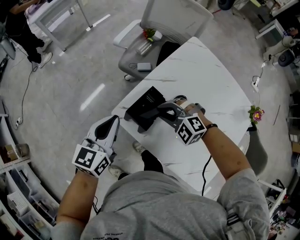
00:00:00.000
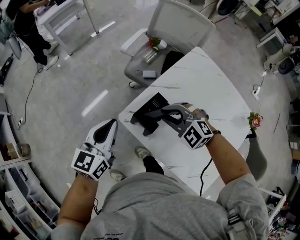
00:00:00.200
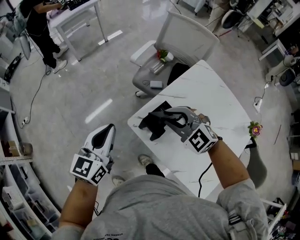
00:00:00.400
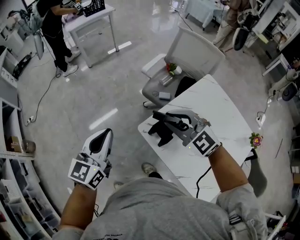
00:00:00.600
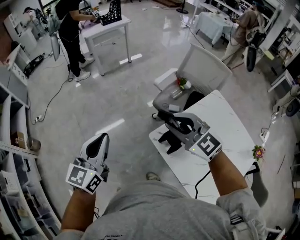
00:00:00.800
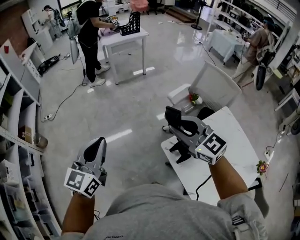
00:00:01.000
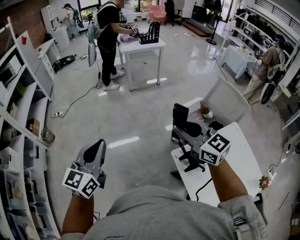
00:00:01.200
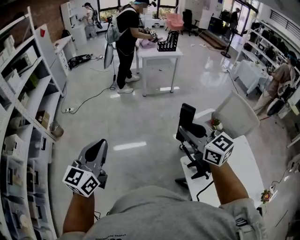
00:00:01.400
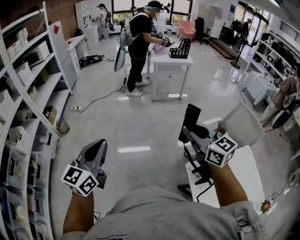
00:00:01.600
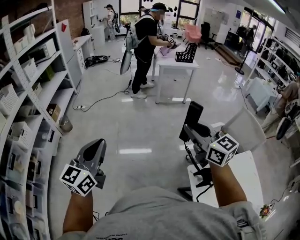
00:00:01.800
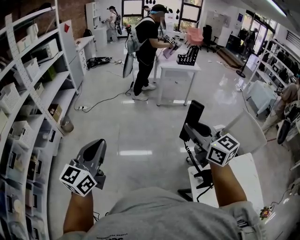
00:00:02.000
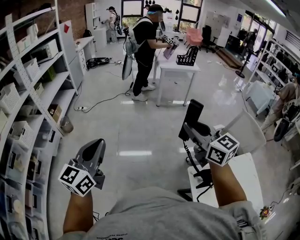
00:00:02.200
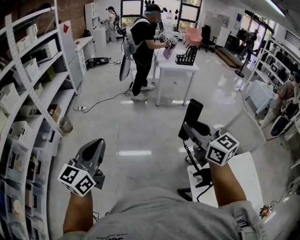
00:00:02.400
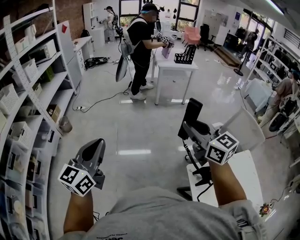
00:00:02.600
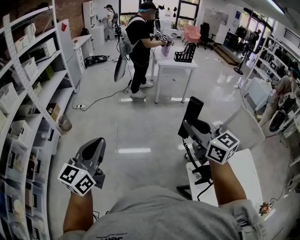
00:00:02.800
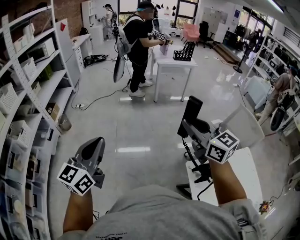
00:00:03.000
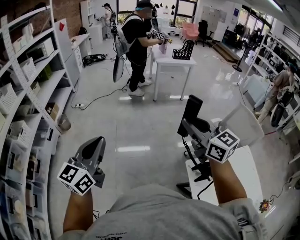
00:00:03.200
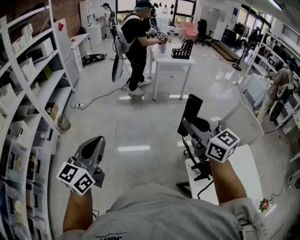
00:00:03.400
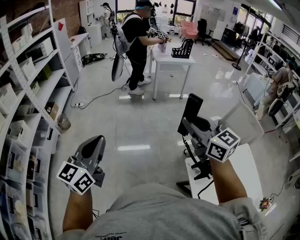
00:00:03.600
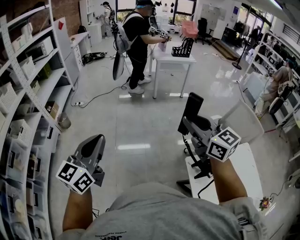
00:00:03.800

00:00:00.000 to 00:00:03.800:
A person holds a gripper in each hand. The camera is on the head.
00:00:00.000 to 00:00:01.200: The left gripper heads to the left and upward, covering about 40 cm, and rotates some 40 degrees. The right gripper travels upward and to the left by roughly 40 cm, and angles its fingers upward, by approximately 40 degrees.
00:00:01.200 to 00:00:02.600: The left gripper travels to the left by some 15 cm; the right gripper travels to the left and upward by roughly 10 cm.
00:00:02.600 to 00:00:03.800: The grippers make only small movements.

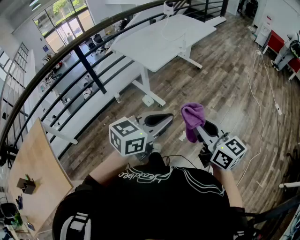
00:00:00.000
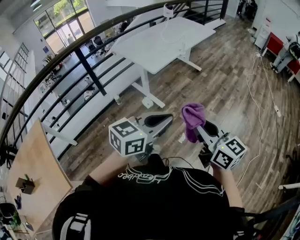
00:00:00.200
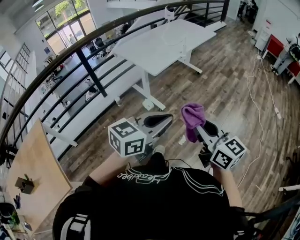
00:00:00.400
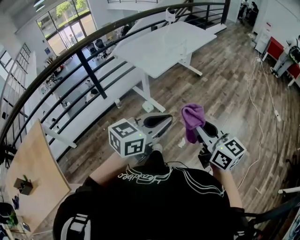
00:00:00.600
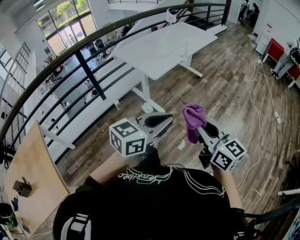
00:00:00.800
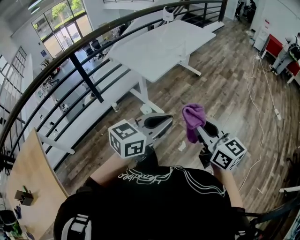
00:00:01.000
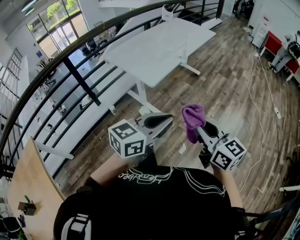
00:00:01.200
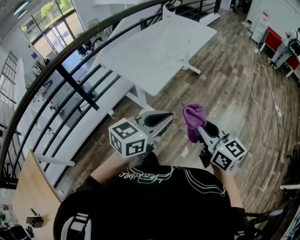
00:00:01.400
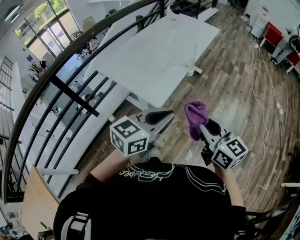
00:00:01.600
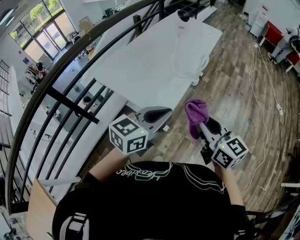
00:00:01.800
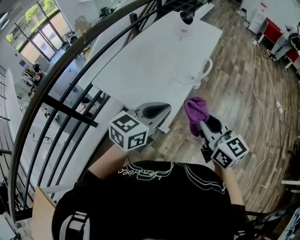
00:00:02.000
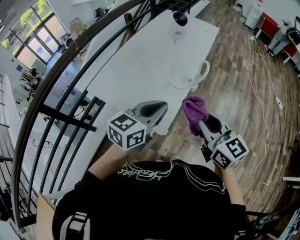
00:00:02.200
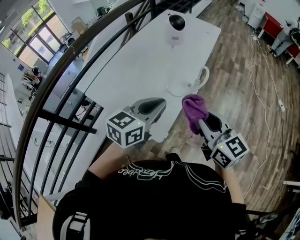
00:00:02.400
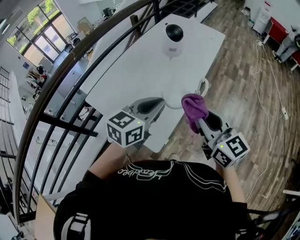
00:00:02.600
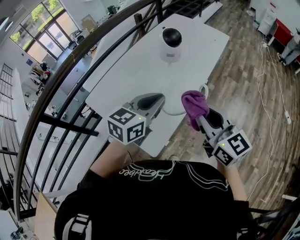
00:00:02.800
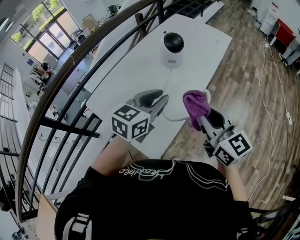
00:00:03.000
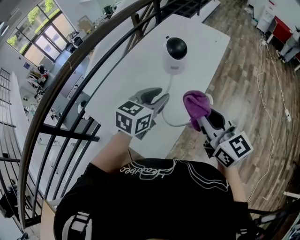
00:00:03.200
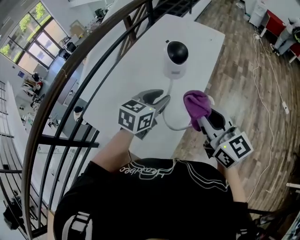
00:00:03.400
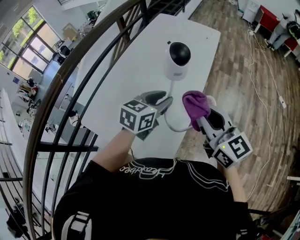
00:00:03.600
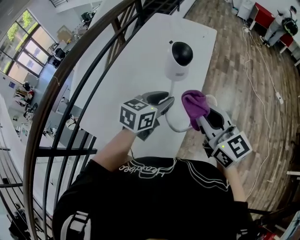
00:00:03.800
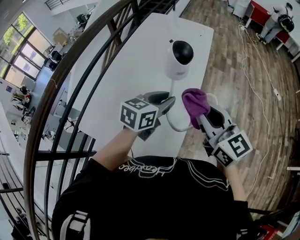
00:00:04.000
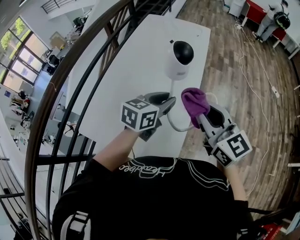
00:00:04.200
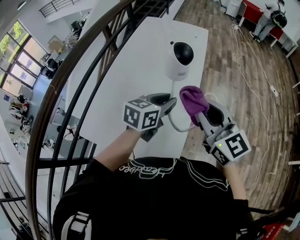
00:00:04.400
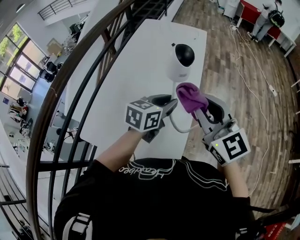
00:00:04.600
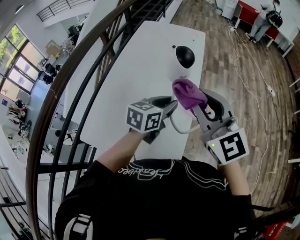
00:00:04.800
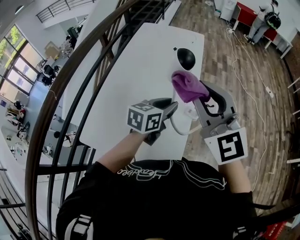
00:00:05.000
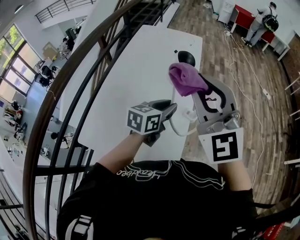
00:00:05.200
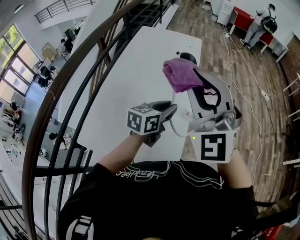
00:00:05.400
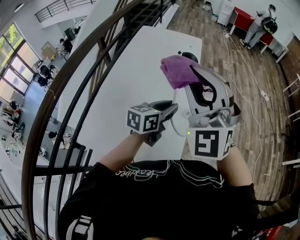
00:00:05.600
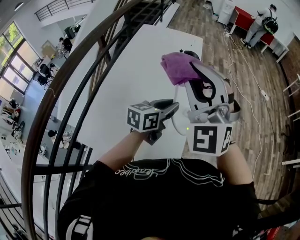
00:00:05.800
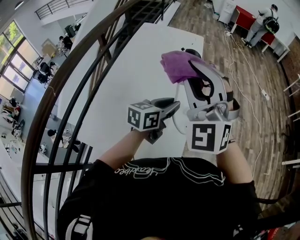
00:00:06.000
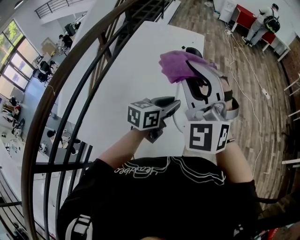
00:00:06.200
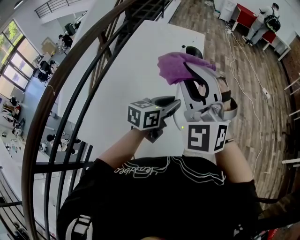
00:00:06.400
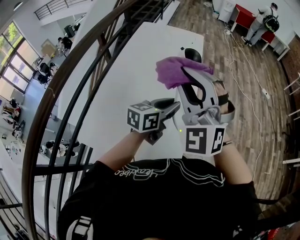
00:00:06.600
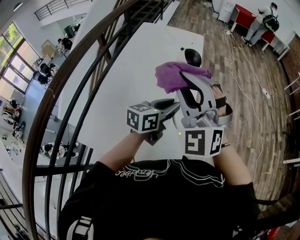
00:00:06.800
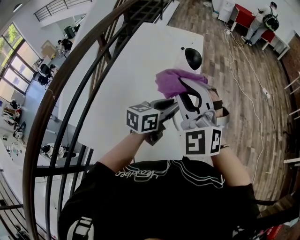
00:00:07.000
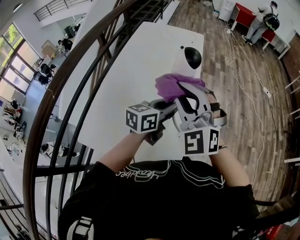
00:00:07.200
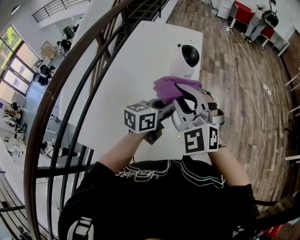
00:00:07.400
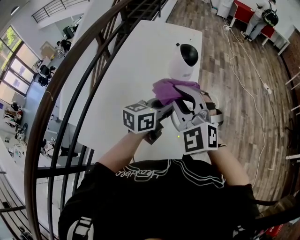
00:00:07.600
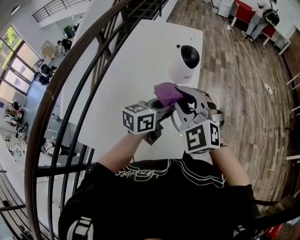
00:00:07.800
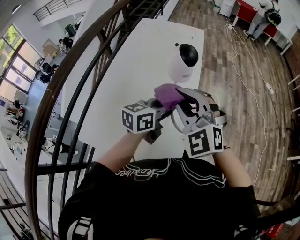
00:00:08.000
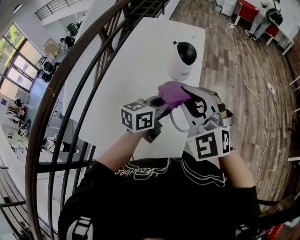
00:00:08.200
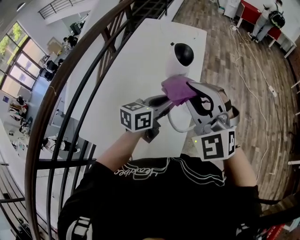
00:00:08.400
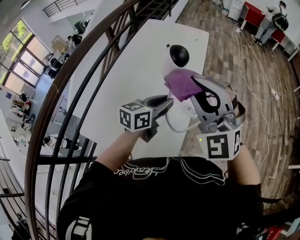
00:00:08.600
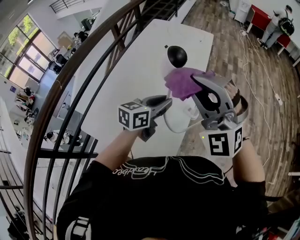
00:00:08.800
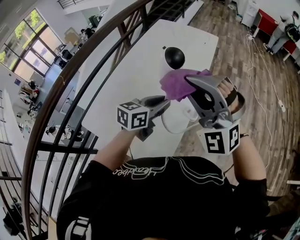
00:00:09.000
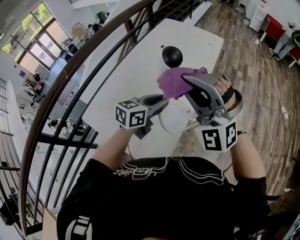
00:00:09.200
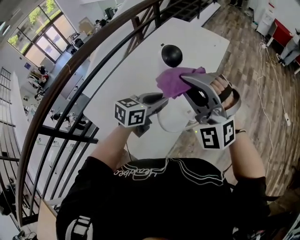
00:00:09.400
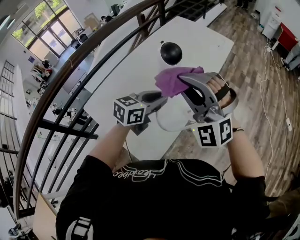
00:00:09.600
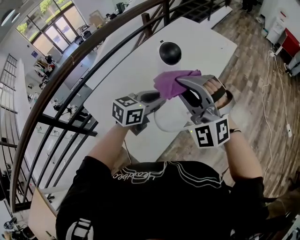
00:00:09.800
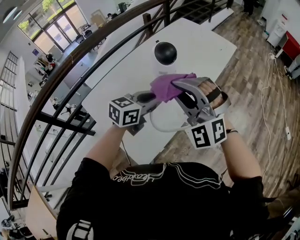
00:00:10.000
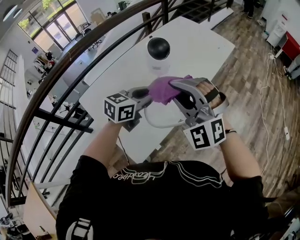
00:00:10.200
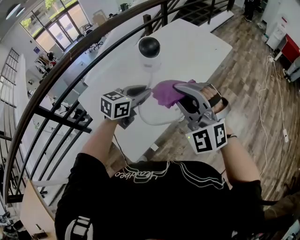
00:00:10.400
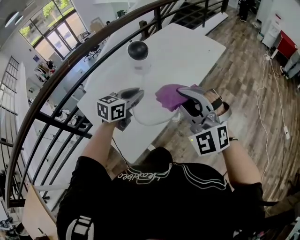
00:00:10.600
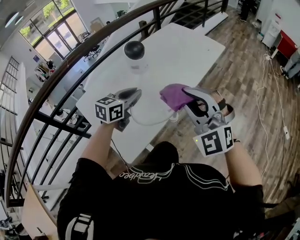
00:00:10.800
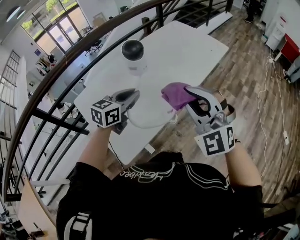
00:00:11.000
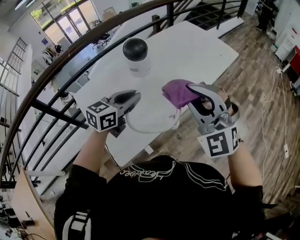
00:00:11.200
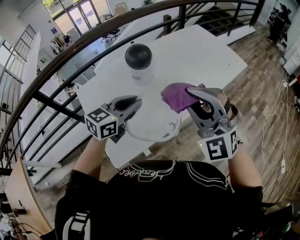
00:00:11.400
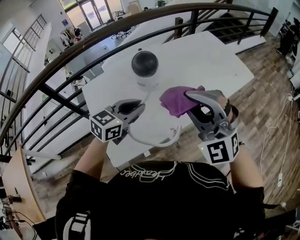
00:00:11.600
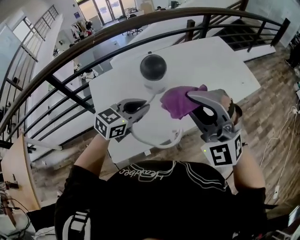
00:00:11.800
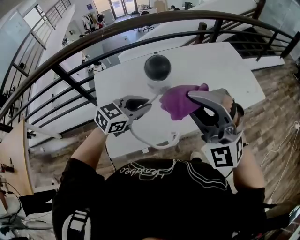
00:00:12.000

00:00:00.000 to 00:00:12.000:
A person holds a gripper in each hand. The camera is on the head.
00:00:00.000 to 00:00:01.600: Both grippers move forward, about 35 cm.
00:00:01.600 to 00:00:03.000: The grippers both shift forward by approximately 40 cm.
00:00:03.000 to 00:00:04.400: The left gripper moves forward, some 5 cm, and rotates approximately 20 degrees. The right gripper is displaced to the left by roughly 5 cm, and swivels some 20 degrees.
00:00:04.400 to 00:00:06.000: The right gripper moves upward and to the left, roughly 15 cm, and rolls counterclockwise, seen from behind, by some 60 degrees.
00:00:06.000 to 00:00:07.600: The right gripper moves downward, about 10 cm, and rotates about 20 degrees.
00:00:07.600 to 00:00:09.000: The right gripper goes about 10 cm upward and to the right, and turns by some 30 degrees.
00:00:09.000 to 00:00:10.400: The right gripper heads to the right and downward, covering approximately 10 cm.
00:00:10.400 to 00:00:12.000: The right gripper moves some 10 cm, and swivels about 40 degrees.

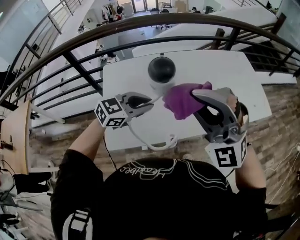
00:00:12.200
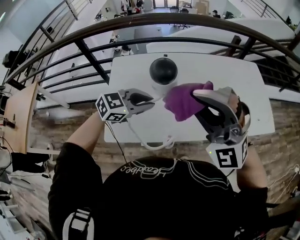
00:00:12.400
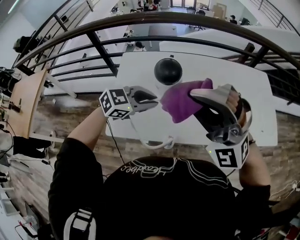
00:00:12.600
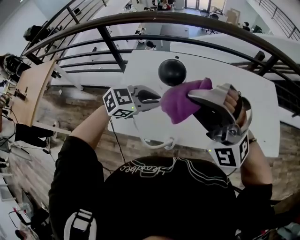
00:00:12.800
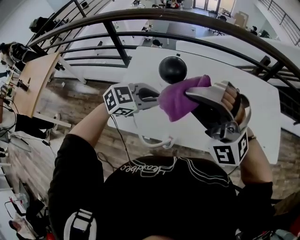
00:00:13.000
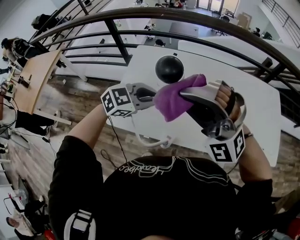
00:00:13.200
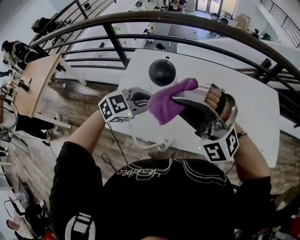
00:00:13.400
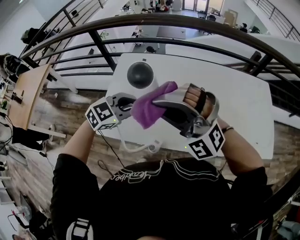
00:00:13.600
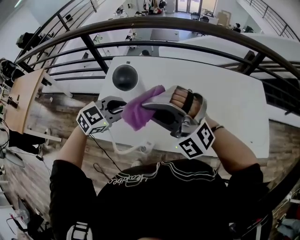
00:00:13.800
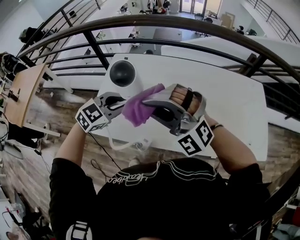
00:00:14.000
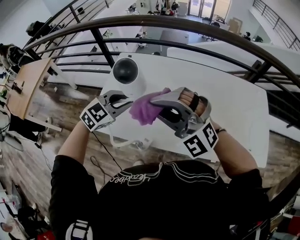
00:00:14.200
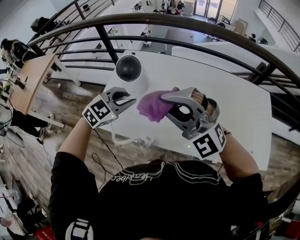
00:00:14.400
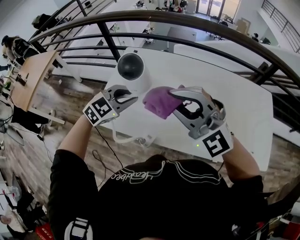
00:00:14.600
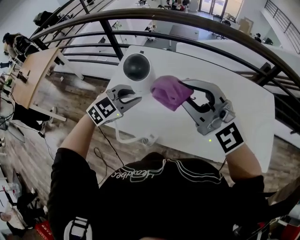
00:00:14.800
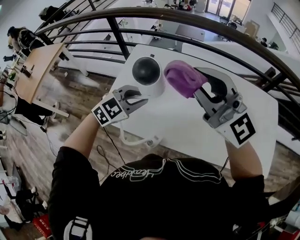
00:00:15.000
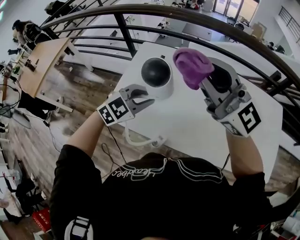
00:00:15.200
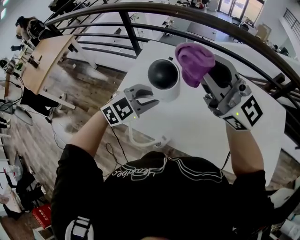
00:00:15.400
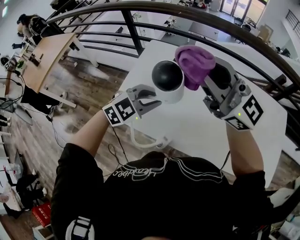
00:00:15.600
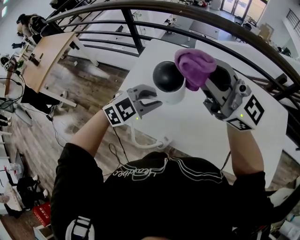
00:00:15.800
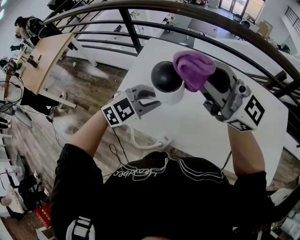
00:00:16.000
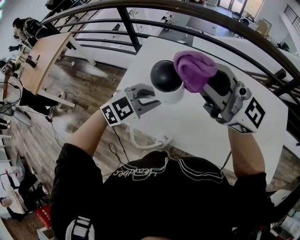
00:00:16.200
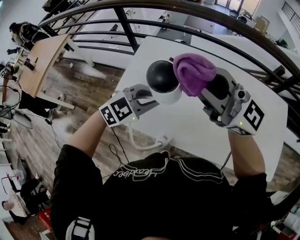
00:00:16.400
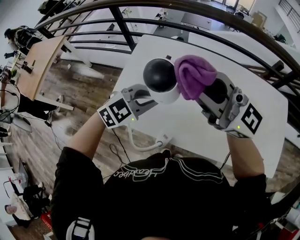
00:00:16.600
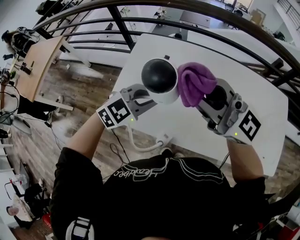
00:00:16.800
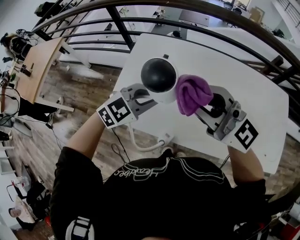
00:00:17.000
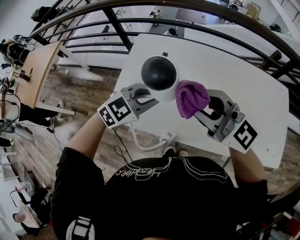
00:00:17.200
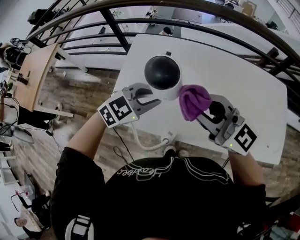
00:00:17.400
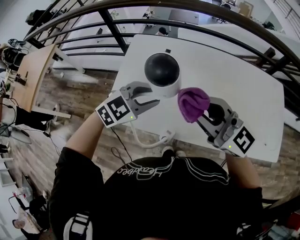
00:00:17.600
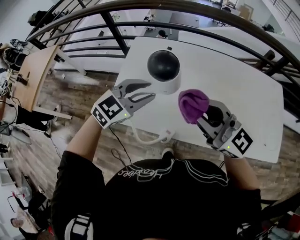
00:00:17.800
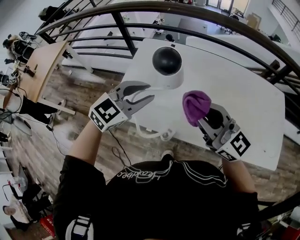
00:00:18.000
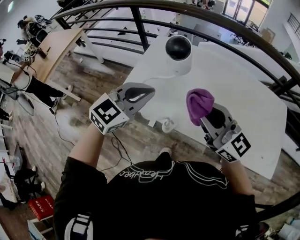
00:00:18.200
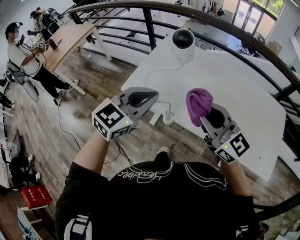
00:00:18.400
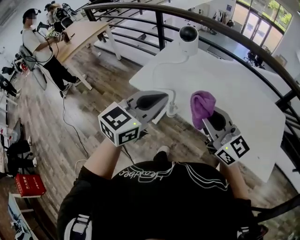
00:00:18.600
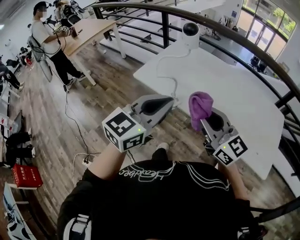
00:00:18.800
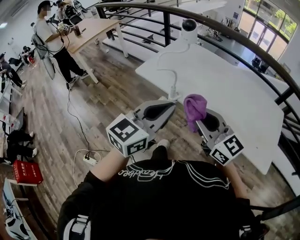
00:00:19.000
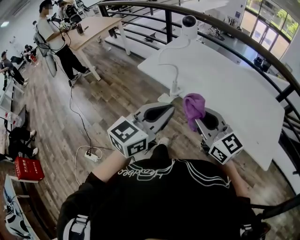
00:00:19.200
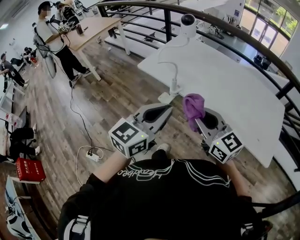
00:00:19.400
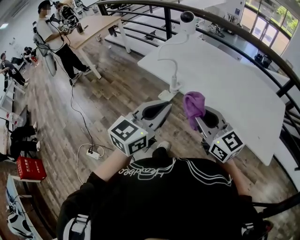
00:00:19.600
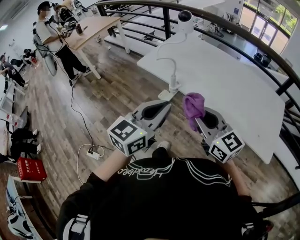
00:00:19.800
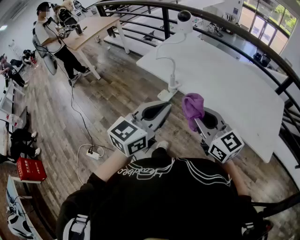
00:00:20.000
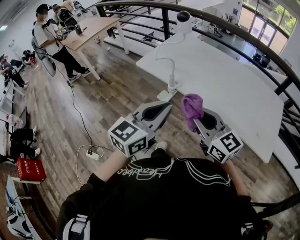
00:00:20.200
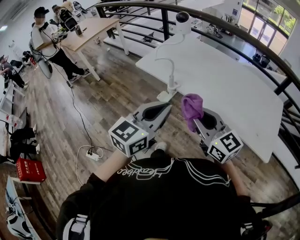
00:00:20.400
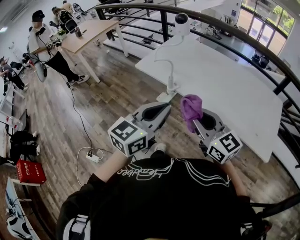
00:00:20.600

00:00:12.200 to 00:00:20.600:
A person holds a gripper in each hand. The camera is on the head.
00:00:12.200 to 00:00:13.600: The left gripper changes its angle by approximately 20 degrees. Meanwhile the right gripper moves downward, roughly 5 cm, and rotates approximately 40 degrees.
00:00:13.600 to 00:00:15.000: The right gripper goes approximately 10 cm to the right and upward, and rolls clockwise, seen from behind, by some 40 degrees.
00:00:15.000 to 00:00:16.400: The right gripper changes its angle by roughly 30 degrees.
00:00:16.400 to 00:00:17.800: The right gripper heads downward, covering some 10 cm.
00:00:17.800 to 00:00:19.200: Both grippers move backward, approximately 35 cm. The left gripper turns by roughly 50 degrees, and closes up.
00:00:19.200 to 00:00:20.600: The grippers move only a little.
